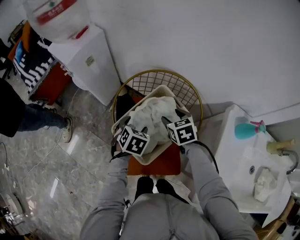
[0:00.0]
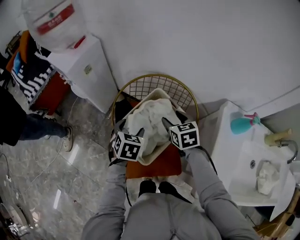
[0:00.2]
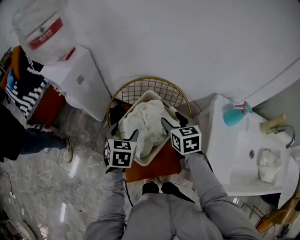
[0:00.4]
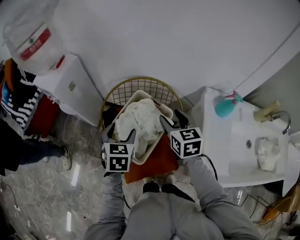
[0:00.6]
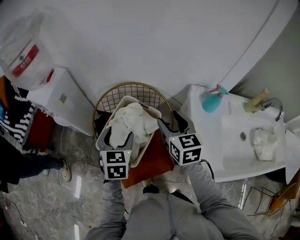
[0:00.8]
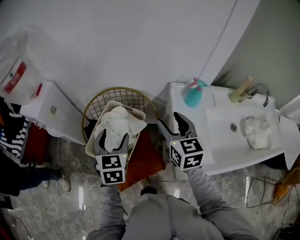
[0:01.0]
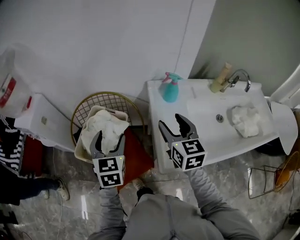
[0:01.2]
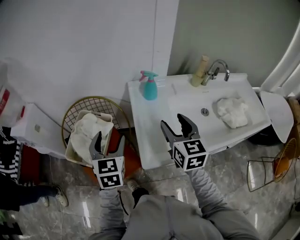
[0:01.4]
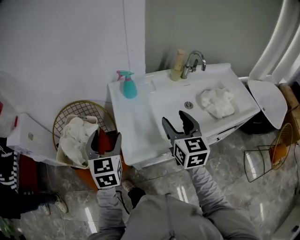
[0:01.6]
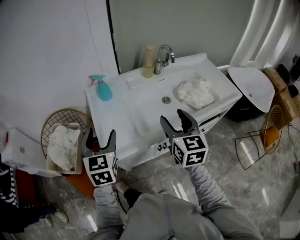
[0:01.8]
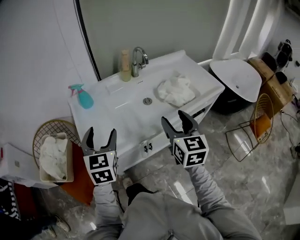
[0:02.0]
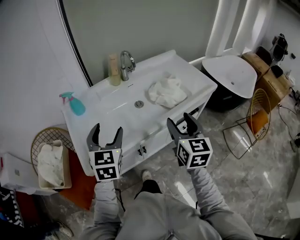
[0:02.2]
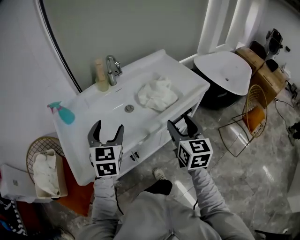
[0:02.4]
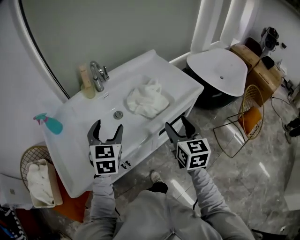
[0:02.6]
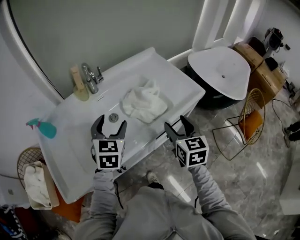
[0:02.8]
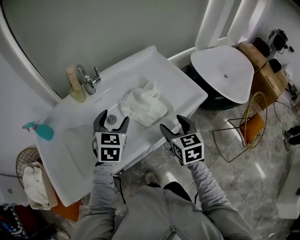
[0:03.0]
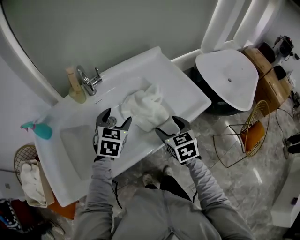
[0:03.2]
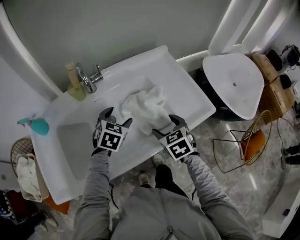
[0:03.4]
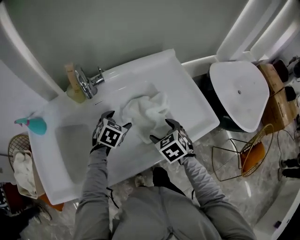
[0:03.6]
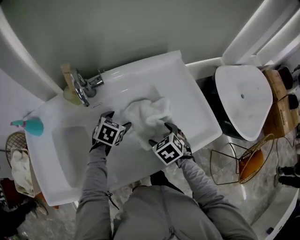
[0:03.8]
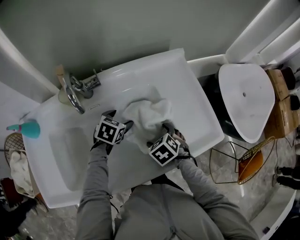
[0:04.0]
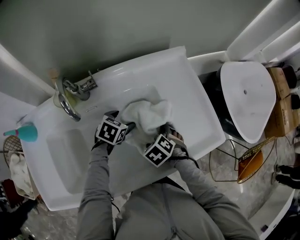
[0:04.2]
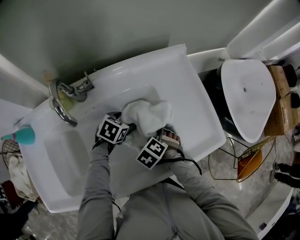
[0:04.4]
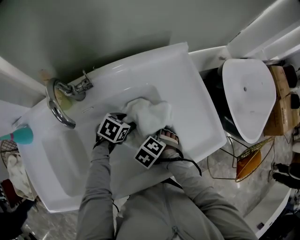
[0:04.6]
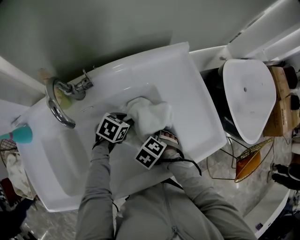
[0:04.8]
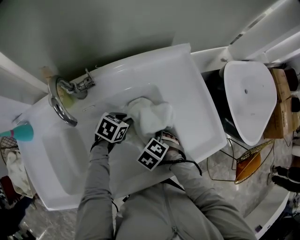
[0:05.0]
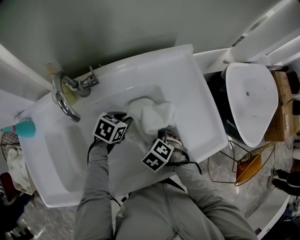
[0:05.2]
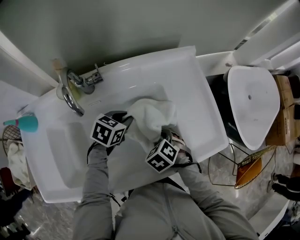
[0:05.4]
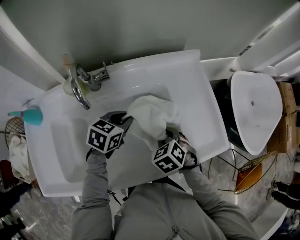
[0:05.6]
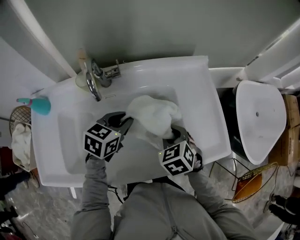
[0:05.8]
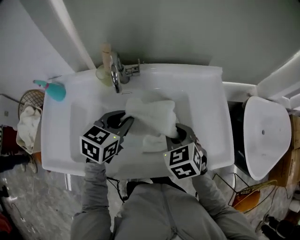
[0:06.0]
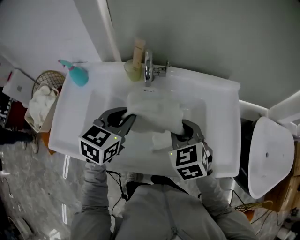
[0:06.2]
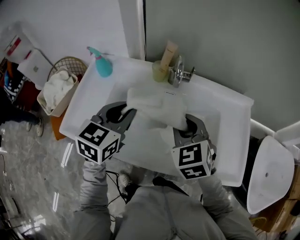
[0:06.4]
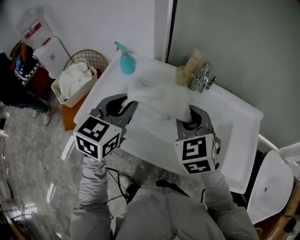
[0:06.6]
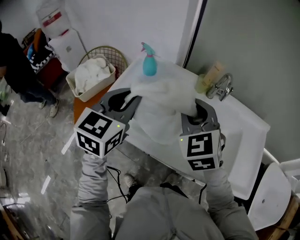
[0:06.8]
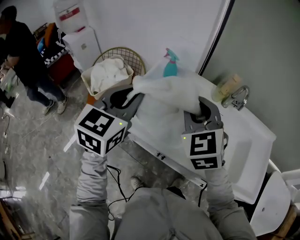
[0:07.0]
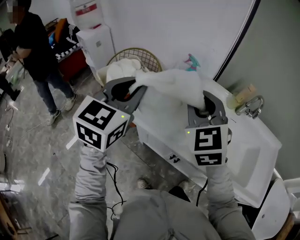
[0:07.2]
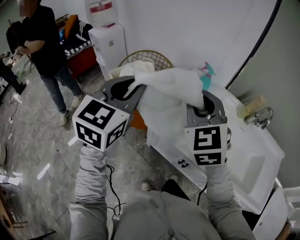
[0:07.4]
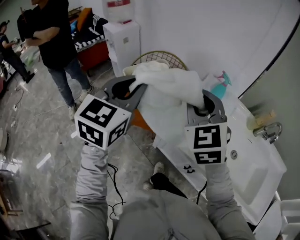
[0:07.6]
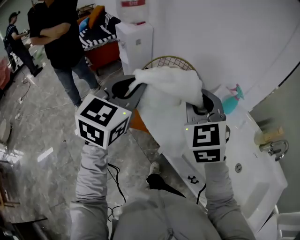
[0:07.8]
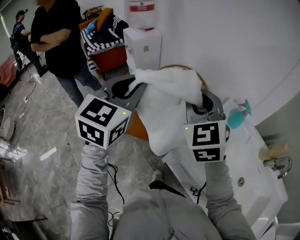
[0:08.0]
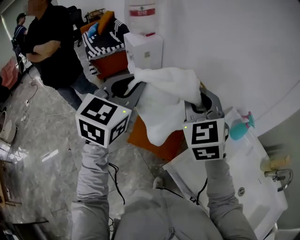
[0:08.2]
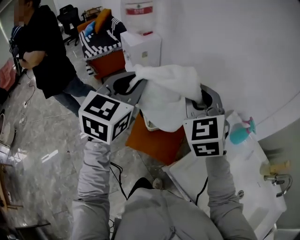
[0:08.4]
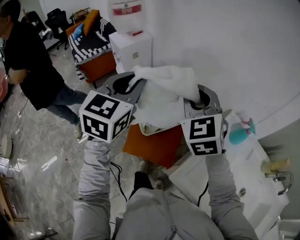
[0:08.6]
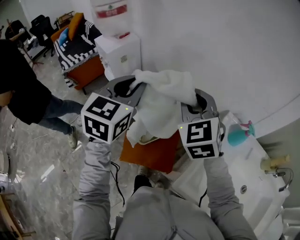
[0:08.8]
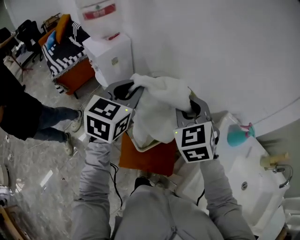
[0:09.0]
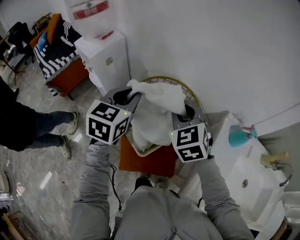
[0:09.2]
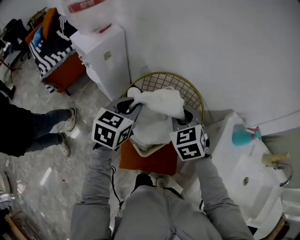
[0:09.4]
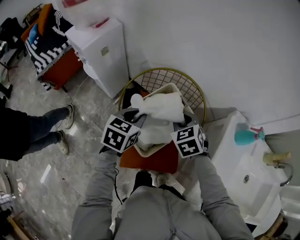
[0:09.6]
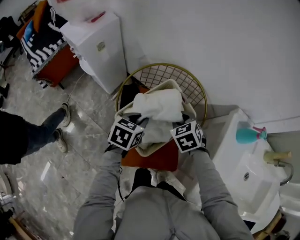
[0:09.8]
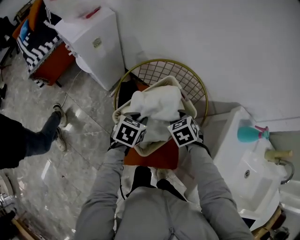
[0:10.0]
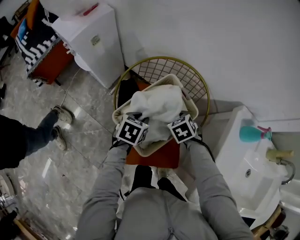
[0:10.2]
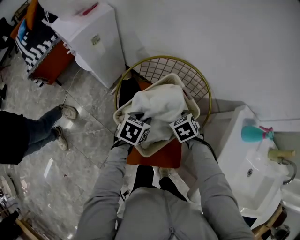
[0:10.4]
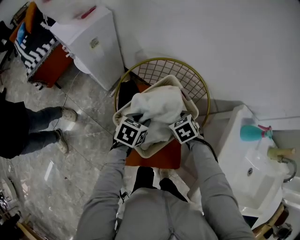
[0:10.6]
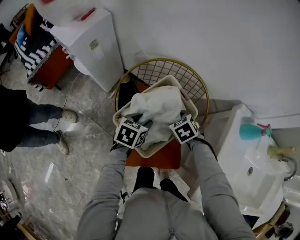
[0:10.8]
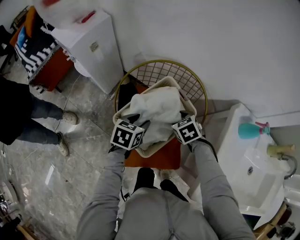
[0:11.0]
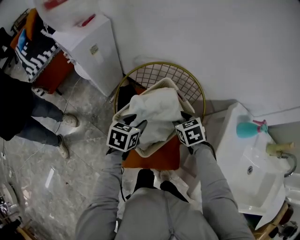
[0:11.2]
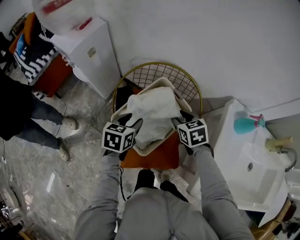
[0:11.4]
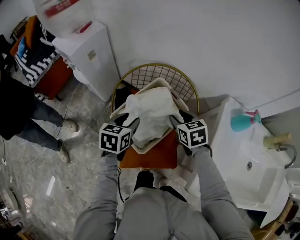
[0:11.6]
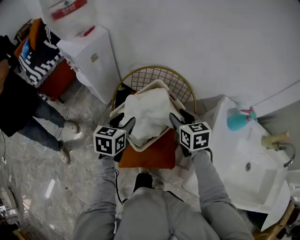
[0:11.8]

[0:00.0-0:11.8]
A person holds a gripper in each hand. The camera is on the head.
0:00.0 to 0:01.4: The right gripper changes place by approximately 50 cm, and tilts its fingers approximately 40 degrees upward; the left gripper shifts by approximately 35 cm, and points its fingers roughly 30 degrees further upward.
0:01.4 to 0:03.0: The two grippers travel together, some 60 cm. The right gripper swivels approximately 30 degrees. The left gripper swivels some 40 degrees.
0:03.0 to 0:04.4: Both grippers travel together downward, roughly 25 cm. The right gripper angles its fingers downward, by approximately 50 degrees. The left gripper turns by roughly 40 degrees.
0:04.4 to 0:06.0: The two grippers go approximately 20 cm upward. The left gripper rotates about 40 degrees, and closes its fingers; the right gripper tilts its fingers roughly 30 degrees upward, and closes up.
0:06.0 to 0:07.4: Both grippers are carried roughly 60 cm. The right gripper points its fingers about 30 degrees further upward; the left gripper rotates approximately 50 degrees.
0:07.4 to 0:08.8: Both grippers travel together forward and to the left, approximately 40 cm.
0:08.8 to 0:10.4: Both grippers move downward, roughly 40 cm. The right gripper tilts its fingers approximately 50 degrees downward. Meanwhile the left gripper points its fingers some 40 degrees further downward.
0:10.4 to 0:11.8: Both grippers travel together upward, approximately 15 cm. The left gripper swivels some 20 degrees. The right gripper tilts its fingers roughly 30 degrees upward.

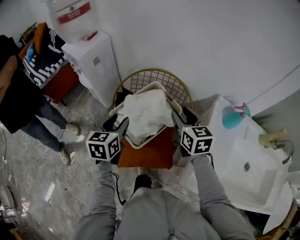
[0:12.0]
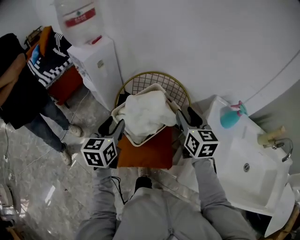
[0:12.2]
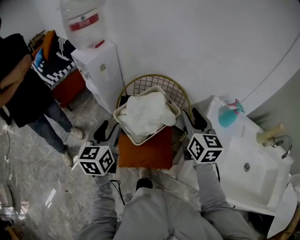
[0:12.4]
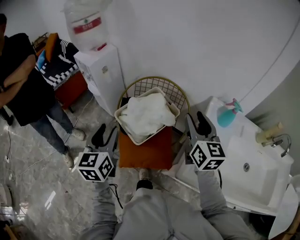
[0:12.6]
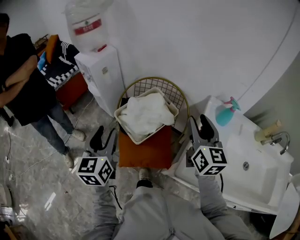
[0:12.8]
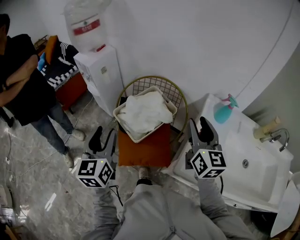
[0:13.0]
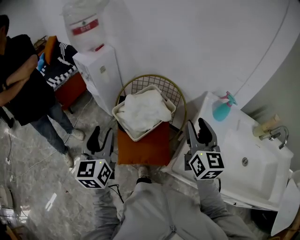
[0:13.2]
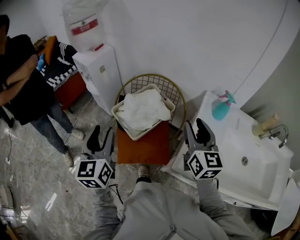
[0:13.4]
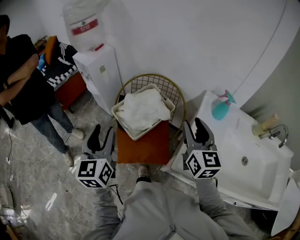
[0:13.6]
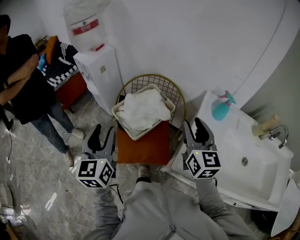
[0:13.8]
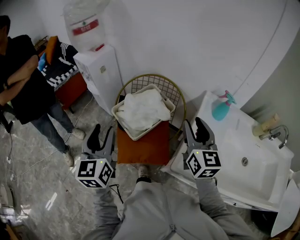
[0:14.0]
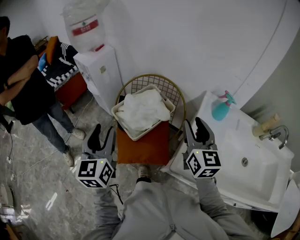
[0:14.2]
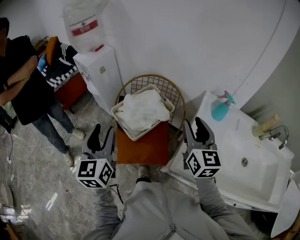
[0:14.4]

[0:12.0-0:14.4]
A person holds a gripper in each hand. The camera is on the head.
0:12.0 to 0:13.2: The right gripper is displaced backward, upward and to the right by some 20 cm, and changes its angle by roughly 30 degrees; the left gripper heads backward and upward, covering approximately 20 cm, and changes its angle by approximately 30 degrees.
0:13.2 to 0:14.4: There are only small adjustments of the grippers.

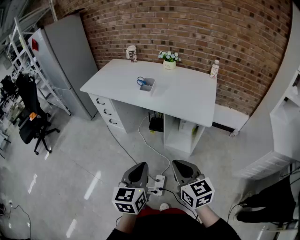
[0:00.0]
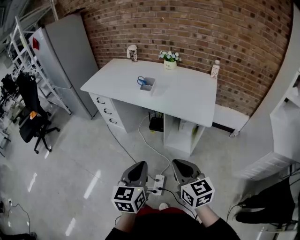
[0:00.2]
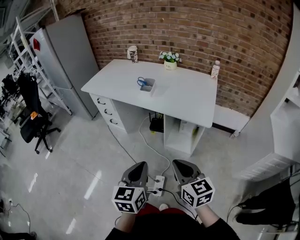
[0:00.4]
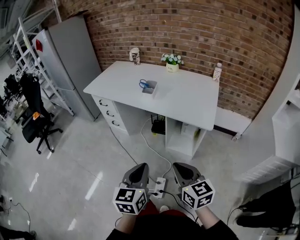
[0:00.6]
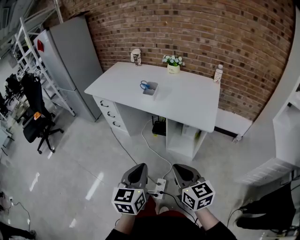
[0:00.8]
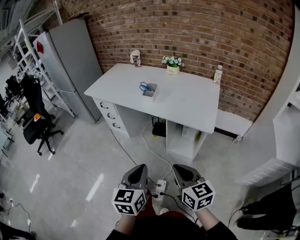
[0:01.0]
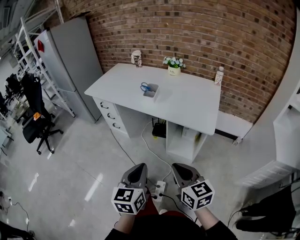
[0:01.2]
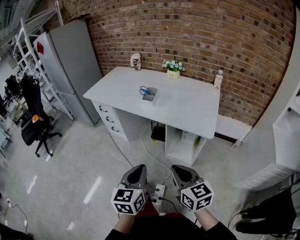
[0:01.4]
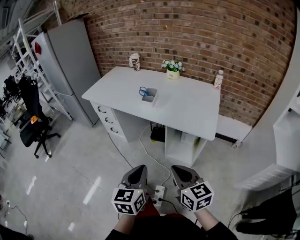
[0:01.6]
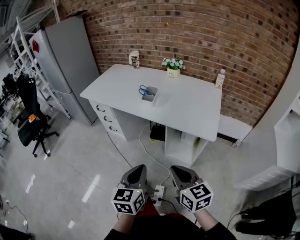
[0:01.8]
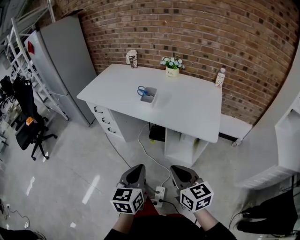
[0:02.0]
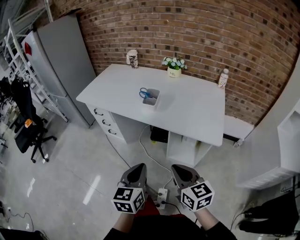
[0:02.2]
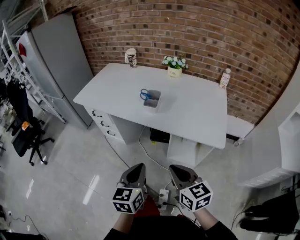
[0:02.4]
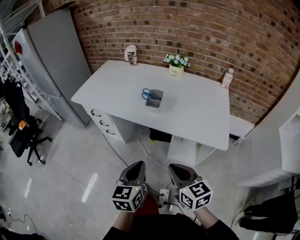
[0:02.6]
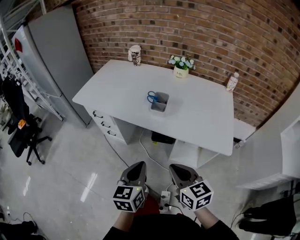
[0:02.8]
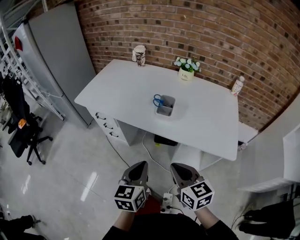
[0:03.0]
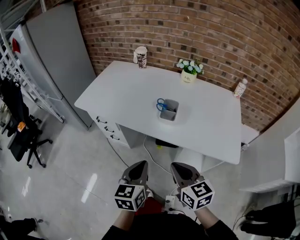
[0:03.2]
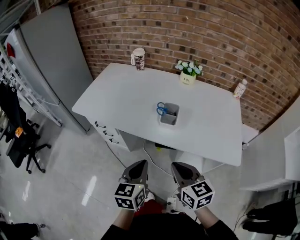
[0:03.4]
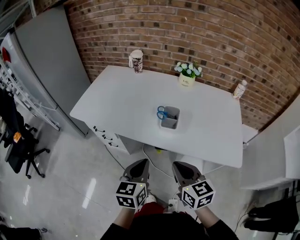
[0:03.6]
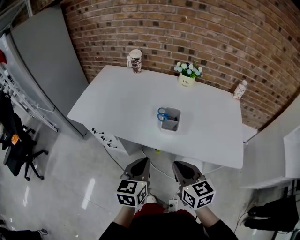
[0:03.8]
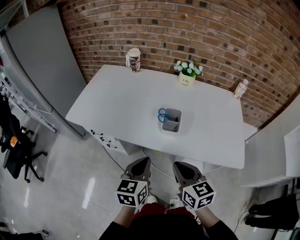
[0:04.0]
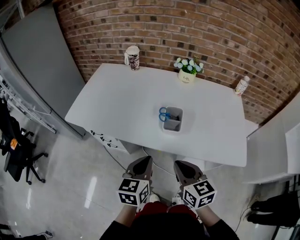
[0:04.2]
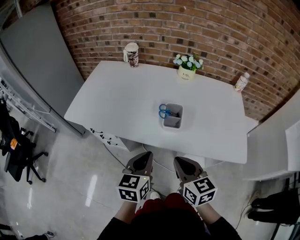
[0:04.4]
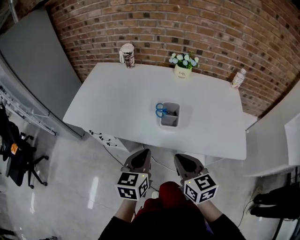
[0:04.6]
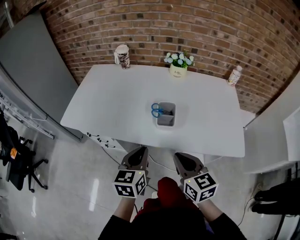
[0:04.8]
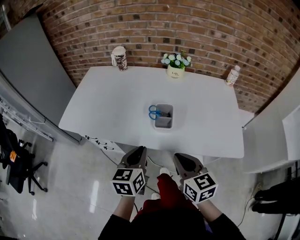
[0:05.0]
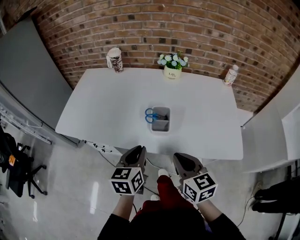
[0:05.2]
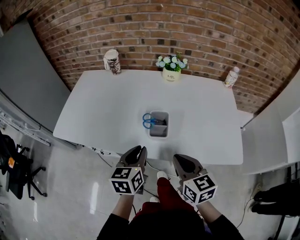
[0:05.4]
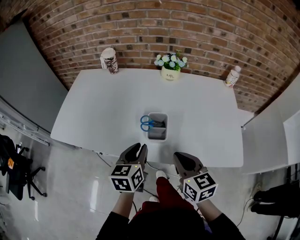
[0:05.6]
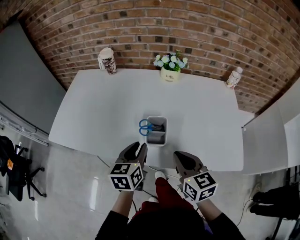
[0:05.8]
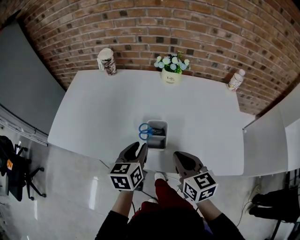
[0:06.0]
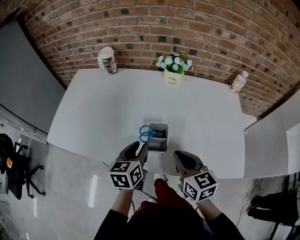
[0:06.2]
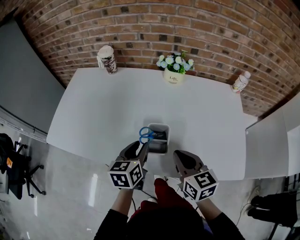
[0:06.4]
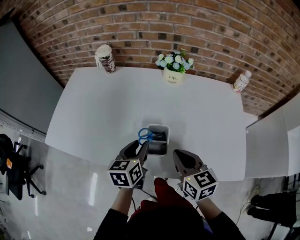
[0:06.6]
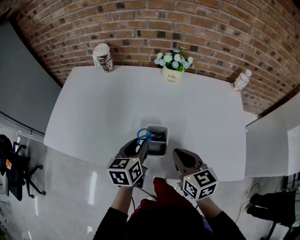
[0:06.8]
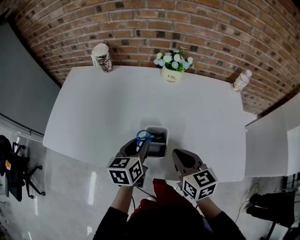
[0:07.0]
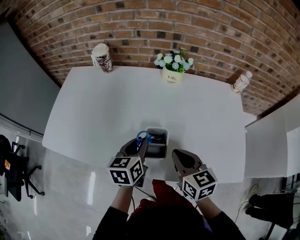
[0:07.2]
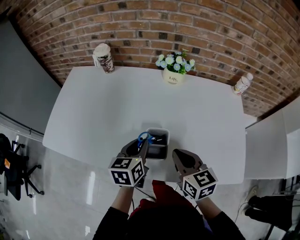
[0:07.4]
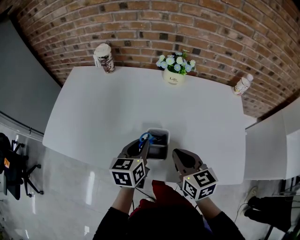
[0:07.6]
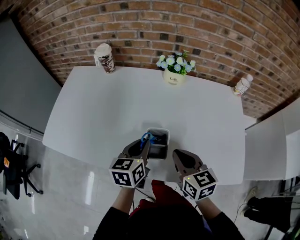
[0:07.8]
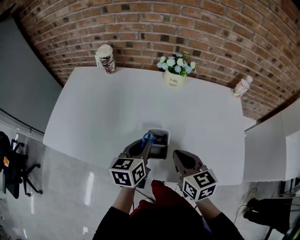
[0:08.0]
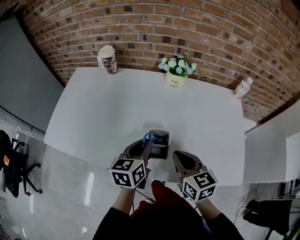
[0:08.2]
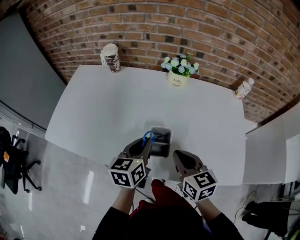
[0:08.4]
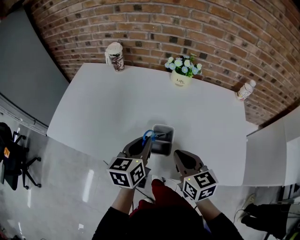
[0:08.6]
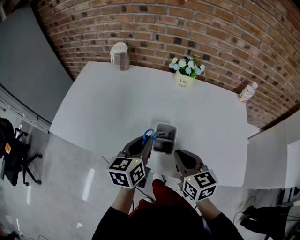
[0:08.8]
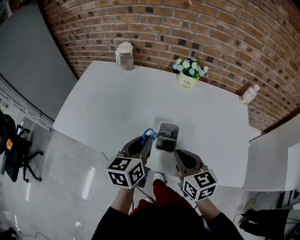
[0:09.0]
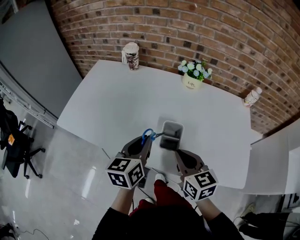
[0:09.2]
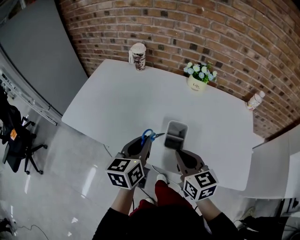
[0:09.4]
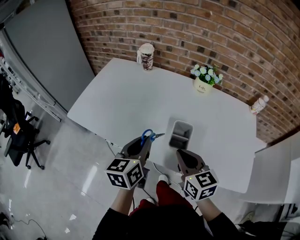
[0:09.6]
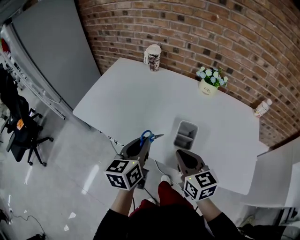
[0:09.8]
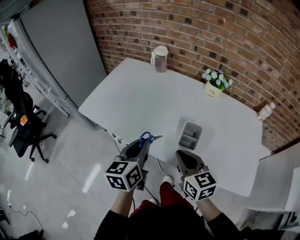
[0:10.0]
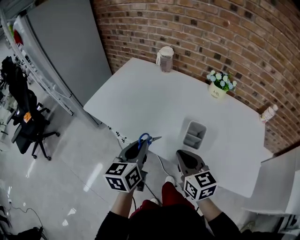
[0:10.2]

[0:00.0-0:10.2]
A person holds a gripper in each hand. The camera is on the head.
0:00.0 to 0:01.4: The grippers move only a little.
0:01.4 to 0:03.0: The two grippers go roughly 25 cm forward and to the left.
0:03.0 to 0:04.4: Both grippers move forward, approximately 15 cm.
0:04.4 to 0:05.8: The left gripper is displaced forward by some 15 cm, and opens. Meanwhile the right gripper goes approximately 10 cm forward and to the right.
0:05.8 to 0:07.2: The grippers both shift forward by approximately 10 cm.
0:07.2 to 0:08.8: The left gripper travels upward by some 5 cm.
0:08.8 to 0:10.2: The left gripper shifts some 15 cm to the left and backward. The right gripper travels to the left by approximately 10 cm.
